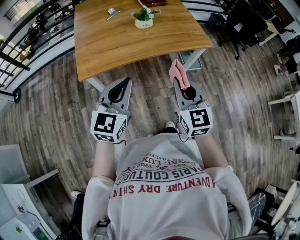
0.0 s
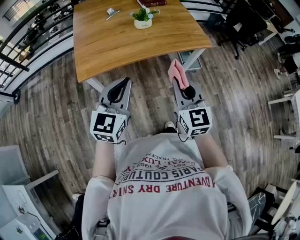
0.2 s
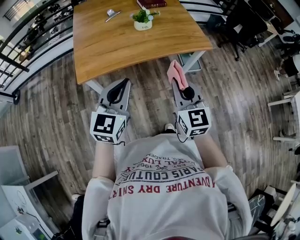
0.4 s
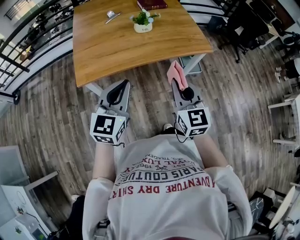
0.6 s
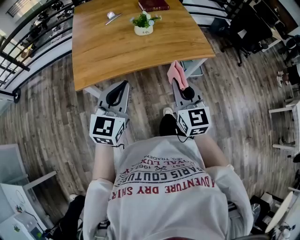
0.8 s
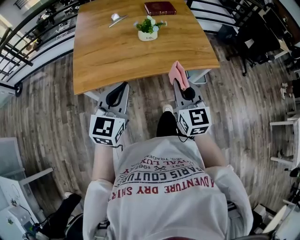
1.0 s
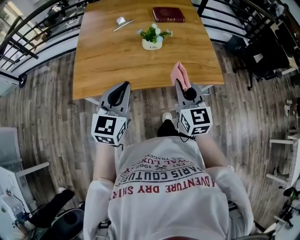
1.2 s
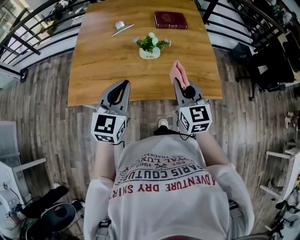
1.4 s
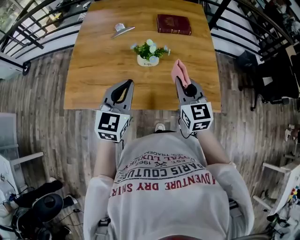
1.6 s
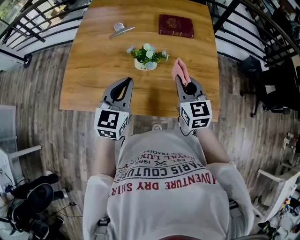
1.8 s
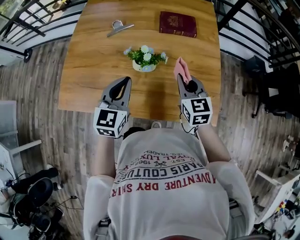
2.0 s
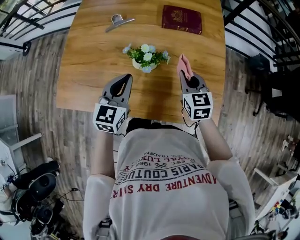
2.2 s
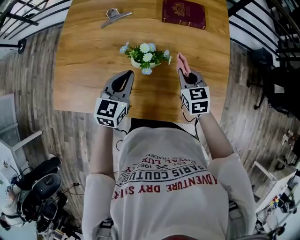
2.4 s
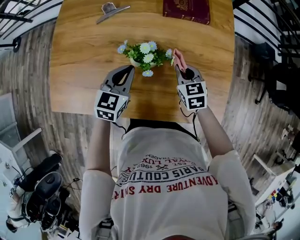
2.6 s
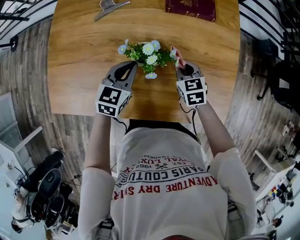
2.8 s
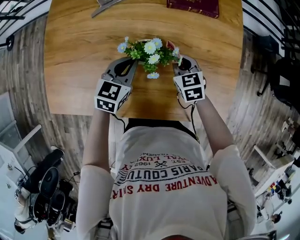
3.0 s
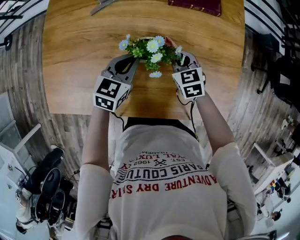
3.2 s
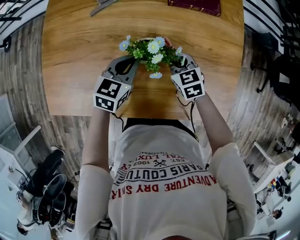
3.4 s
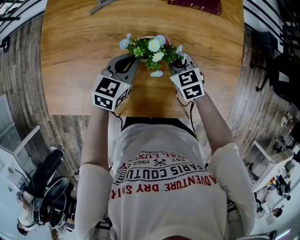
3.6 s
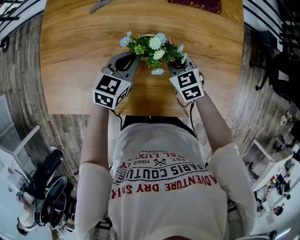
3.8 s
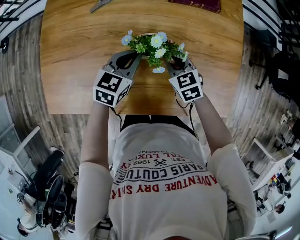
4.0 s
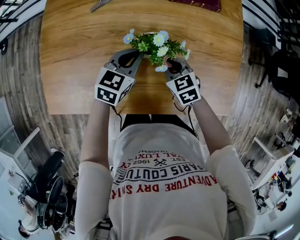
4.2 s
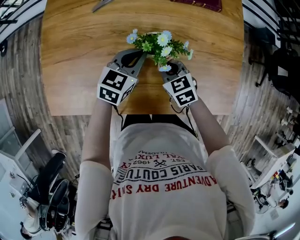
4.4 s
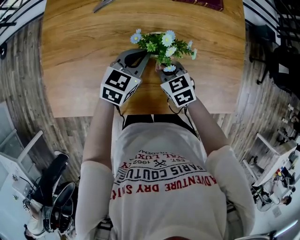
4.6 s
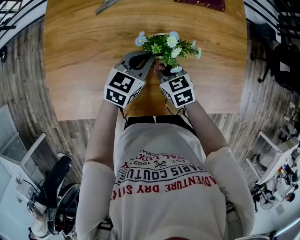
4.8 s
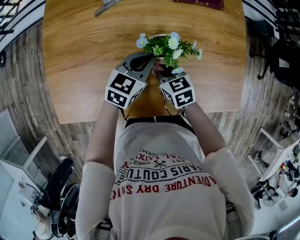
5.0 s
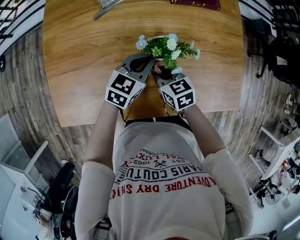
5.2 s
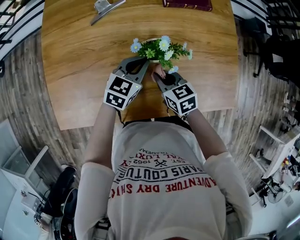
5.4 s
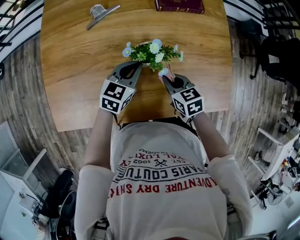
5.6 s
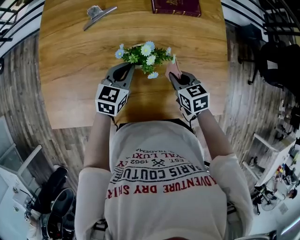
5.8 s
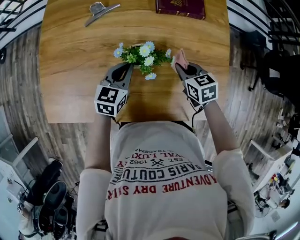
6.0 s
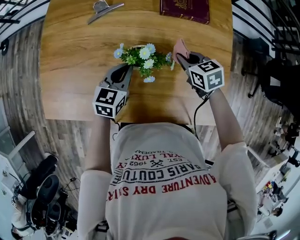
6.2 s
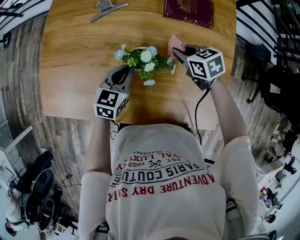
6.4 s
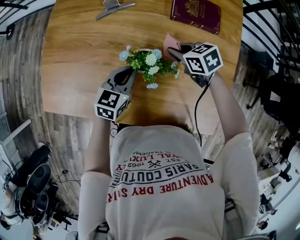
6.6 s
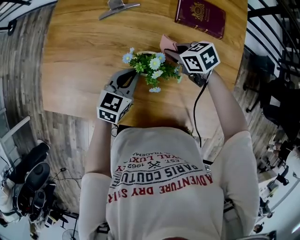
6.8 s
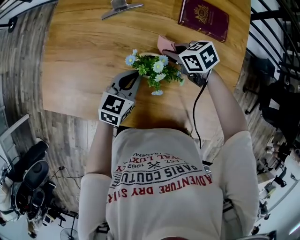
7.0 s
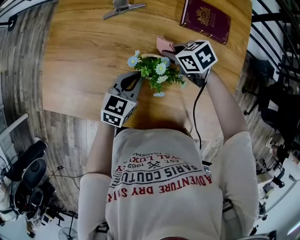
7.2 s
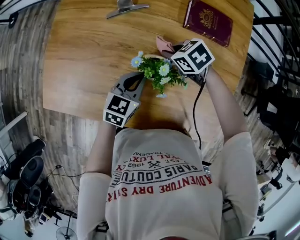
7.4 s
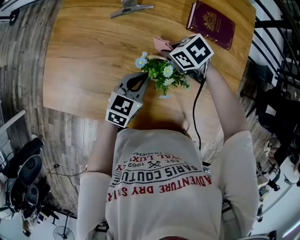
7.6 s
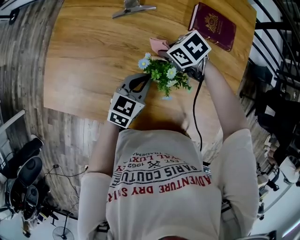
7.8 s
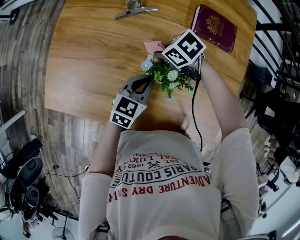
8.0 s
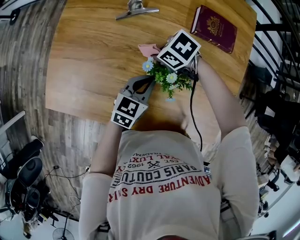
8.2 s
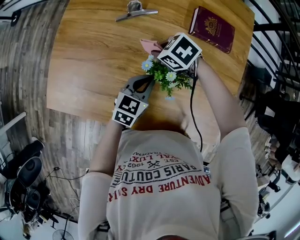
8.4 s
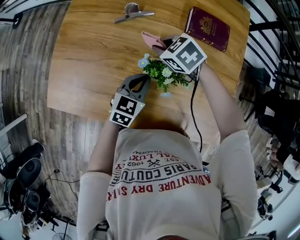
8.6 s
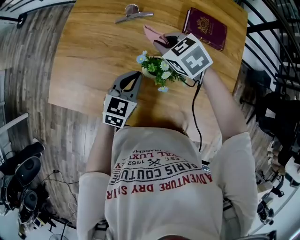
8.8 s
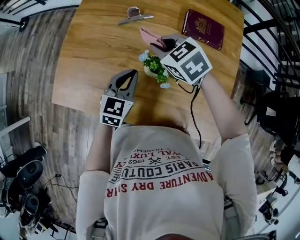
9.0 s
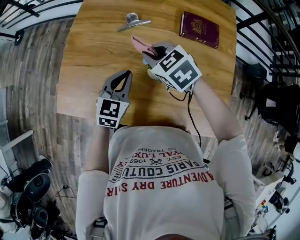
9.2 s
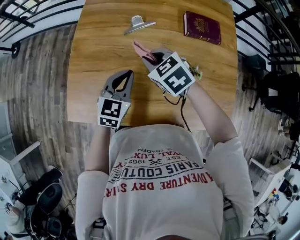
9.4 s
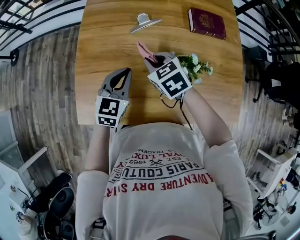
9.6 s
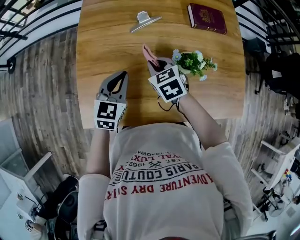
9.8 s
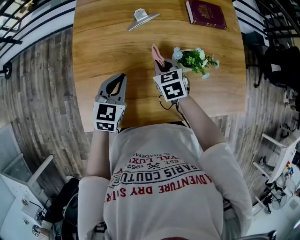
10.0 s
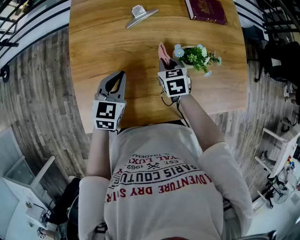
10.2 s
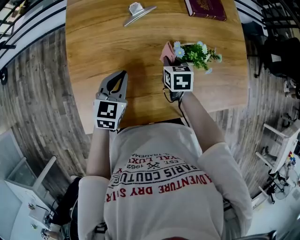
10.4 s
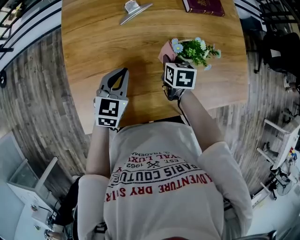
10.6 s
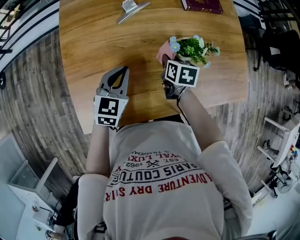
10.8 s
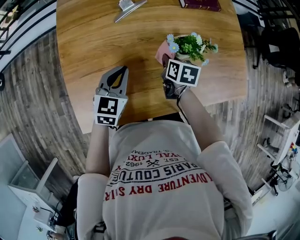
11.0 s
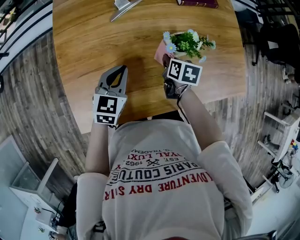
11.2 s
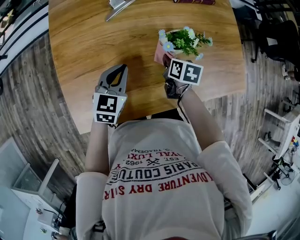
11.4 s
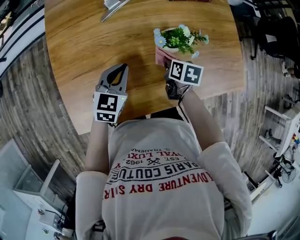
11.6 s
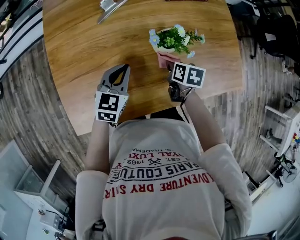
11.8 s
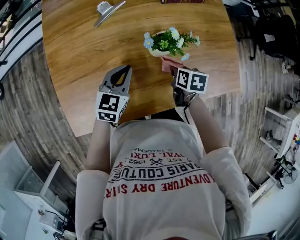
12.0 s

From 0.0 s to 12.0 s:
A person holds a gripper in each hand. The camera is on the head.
From 0.0 s to 1.6 s: The grippers both shift forward by about 35 cm. The left gripper rotates some 20 degrees. The right gripper changes its angle by approximately 20 degrees.
From 1.6 s to 3.0 s: Both grippers travel together downward and forward, approximately 30 cm. The left gripper changes its angle by about 20 degrees. Meanwhile the right gripper turns by about 30 degrees.
From 3.0 s to 4.4 s: The right gripper shifts some 10 cm to the left and backward.
From 4.4 s to 6.0 s: The right gripper is displaced to the right by some 15 cm.
From 6.0 s to 7.6 s: The right gripper shifts by approximately 20 cm, and rotates roughly 40 degrees.
From 7.6 s to 9.0 s: The right gripper is displaced upward by approximately 15 cm, and turns by some 30 degrees. The left gripper is displaced upward by some 5 cm.
From 9.0 s to 10.4 s: The left gripper ends up approximately 20 cm from where it was; the right gripper travels downward by some 15 cm, and rotates roughly 60 degrees.
From 10.4 s to 12.0 s: The grippers both shift to the right by roughly 15 cm. The right gripper swivels roughly 20 degrees.

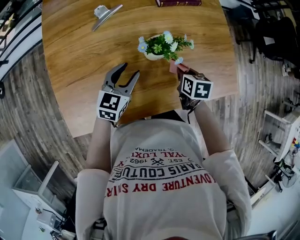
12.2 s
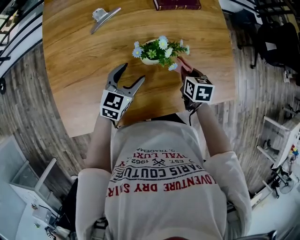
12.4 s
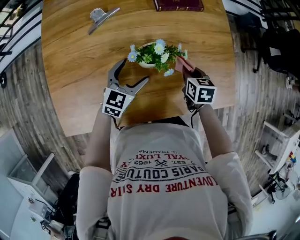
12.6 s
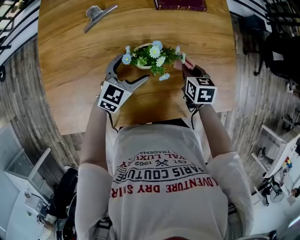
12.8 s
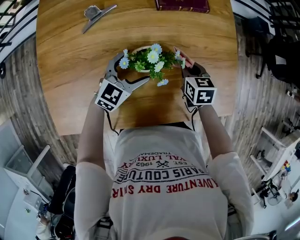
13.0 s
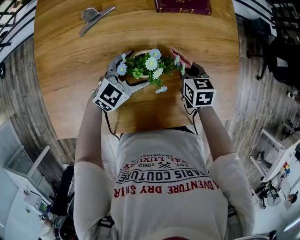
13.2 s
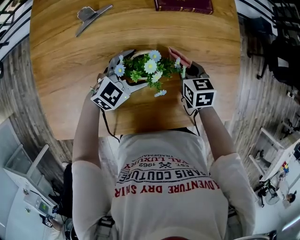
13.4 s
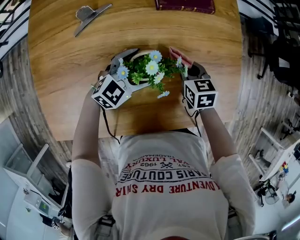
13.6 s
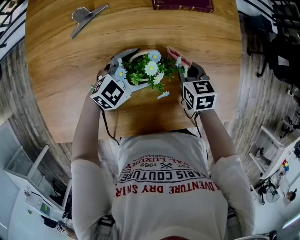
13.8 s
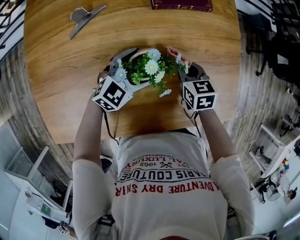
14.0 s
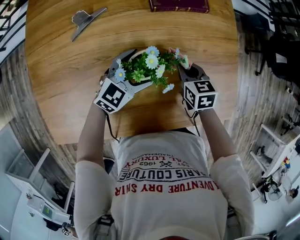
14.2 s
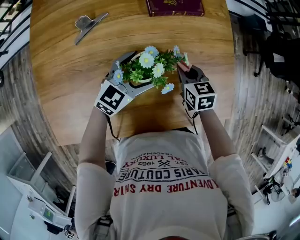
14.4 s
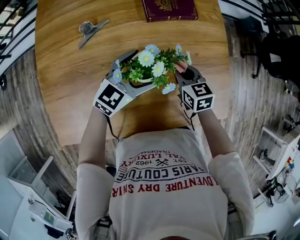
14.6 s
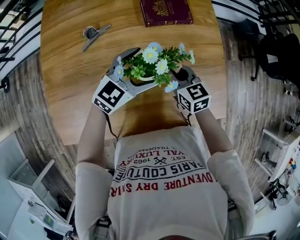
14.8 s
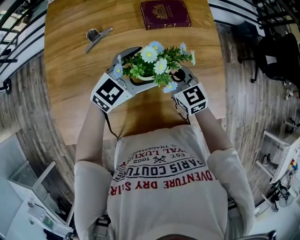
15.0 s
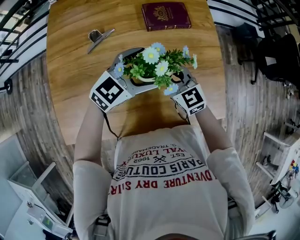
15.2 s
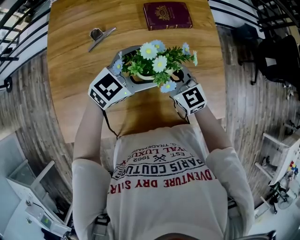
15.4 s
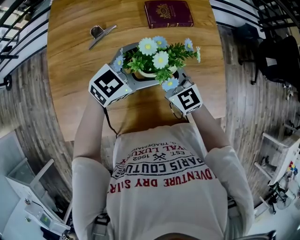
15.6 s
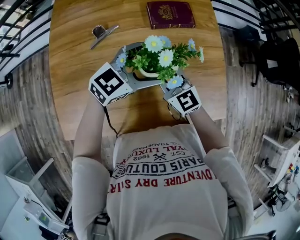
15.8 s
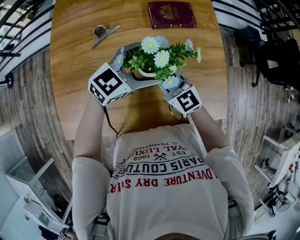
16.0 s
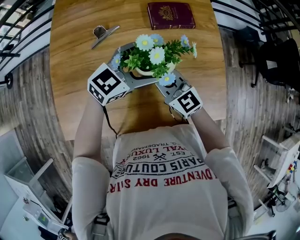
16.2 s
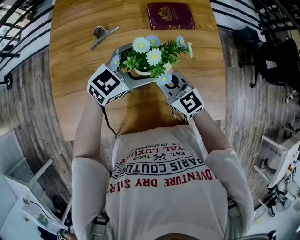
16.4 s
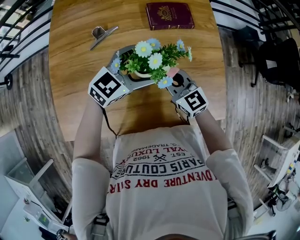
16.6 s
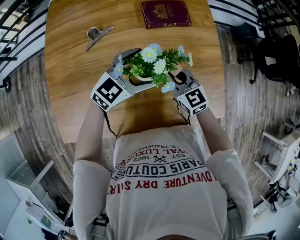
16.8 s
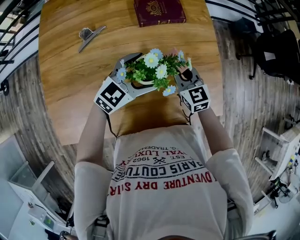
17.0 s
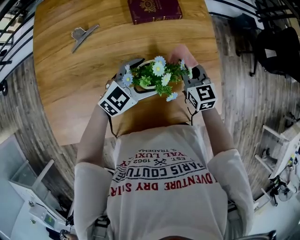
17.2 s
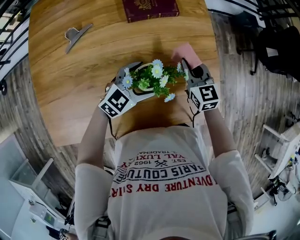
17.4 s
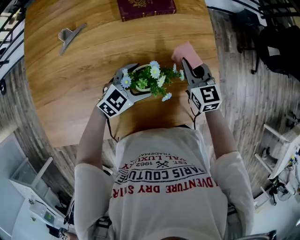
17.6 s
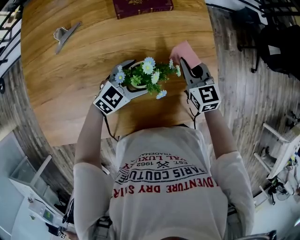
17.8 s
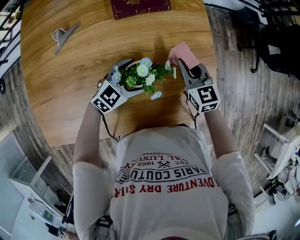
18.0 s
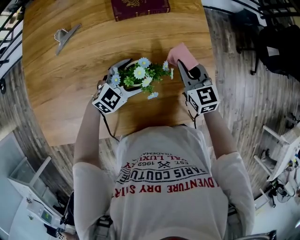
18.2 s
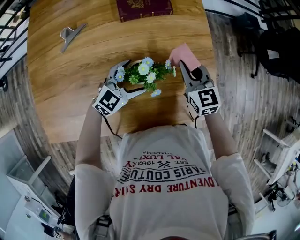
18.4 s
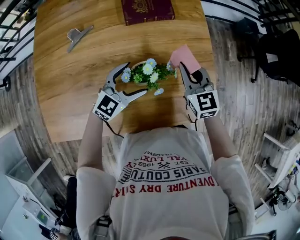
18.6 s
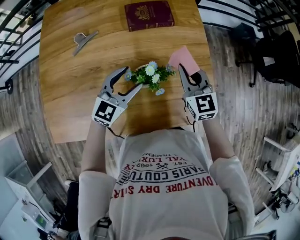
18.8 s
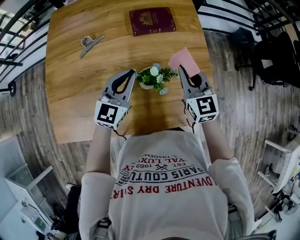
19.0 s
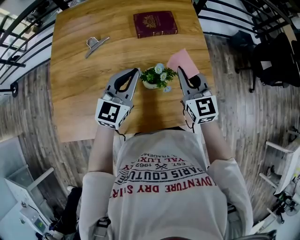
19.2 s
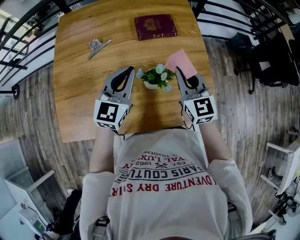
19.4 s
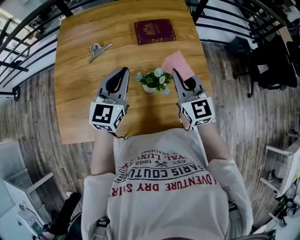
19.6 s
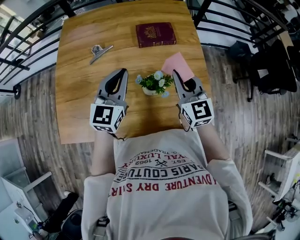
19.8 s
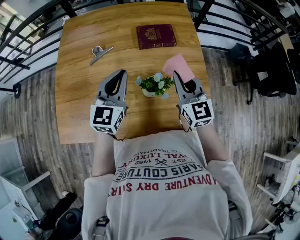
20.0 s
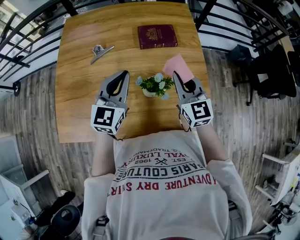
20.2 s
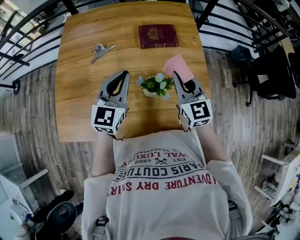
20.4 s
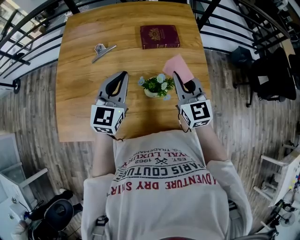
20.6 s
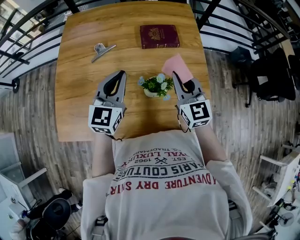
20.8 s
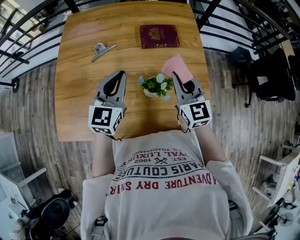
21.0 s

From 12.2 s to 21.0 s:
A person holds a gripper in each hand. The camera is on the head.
From 12.2 s to 13.6 s: The right gripper goes roughly 10 cm forward, and changes its angle by about 20 degrees. The left gripper shifts roughly 15 cm to the right, forward and downward, rotates approximately 30 degrees, and opens.
From 13.6 s to 15.2 s: The left gripper moves upward, some 20 cm. Meanwhile the right gripper is displaced upward and to the left by approximately 15 cm, and swivels about 40 degrees.
From 16.6 s to 18.0 s: The left gripper heads downward and to the right, covering some 20 cm. The right gripper goes approximately 25 cm to the right, forward and downward, and rotates about 20 degrees.
From 18.0 s to 19.6 s: The grippers both shift upward and to the left by about 25 cm. The right gripper changes its angle by approximately 20 degrees; the left gripper changes its angle by approximately 50 degrees, and closes its fingers.
From 19.6 s to 21.0 s: There are only small adjustments of the grippers.

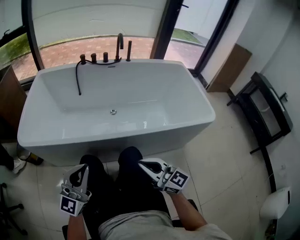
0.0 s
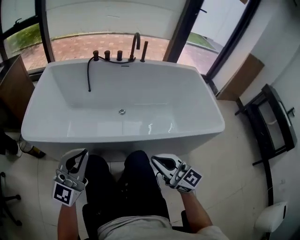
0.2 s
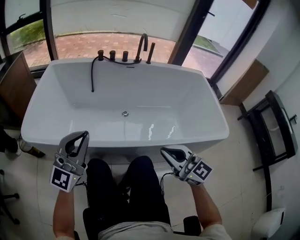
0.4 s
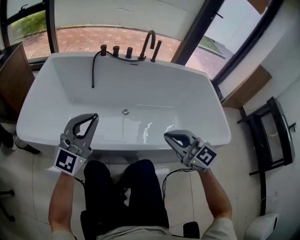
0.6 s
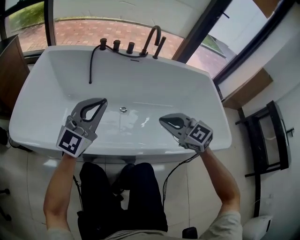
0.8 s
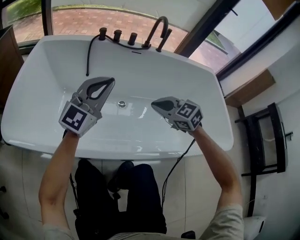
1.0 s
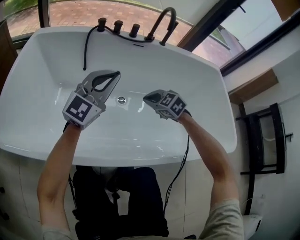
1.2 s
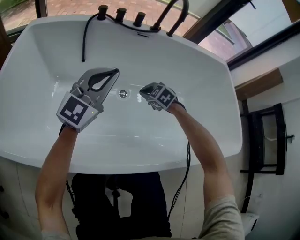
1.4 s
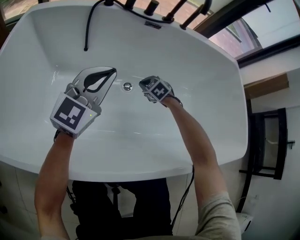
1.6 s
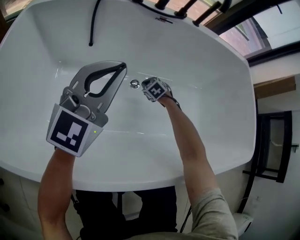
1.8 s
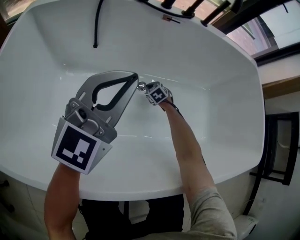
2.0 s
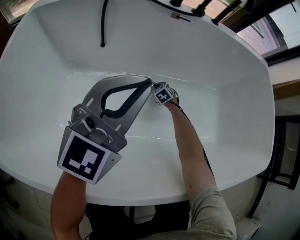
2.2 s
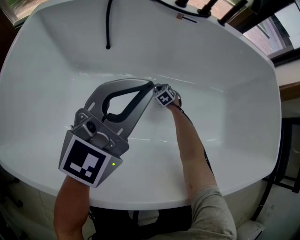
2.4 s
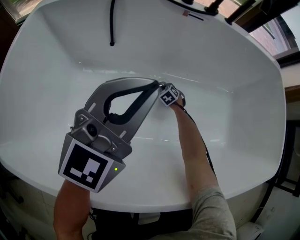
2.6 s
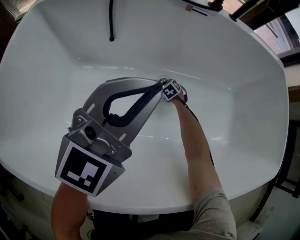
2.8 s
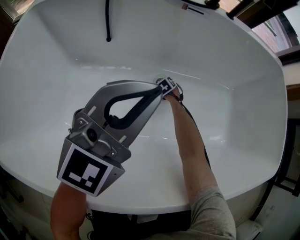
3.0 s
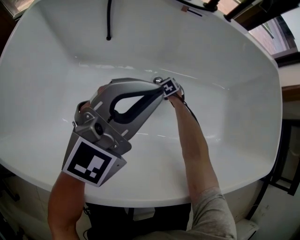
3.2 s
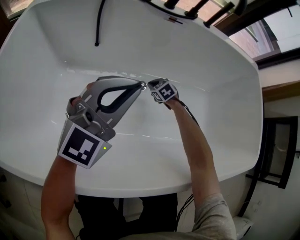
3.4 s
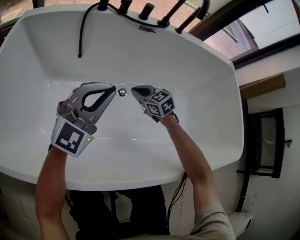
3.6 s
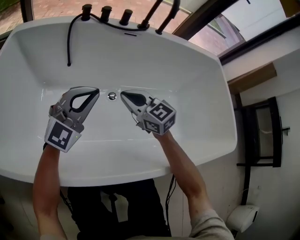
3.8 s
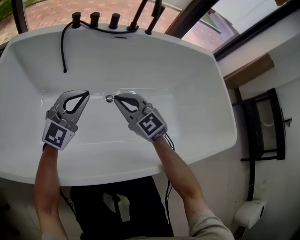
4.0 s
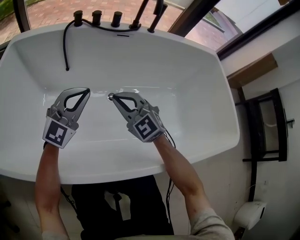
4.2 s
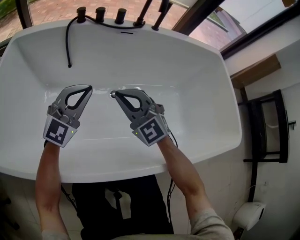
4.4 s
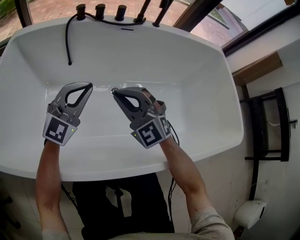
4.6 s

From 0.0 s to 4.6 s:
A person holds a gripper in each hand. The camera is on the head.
From 0.0 s to 1.6 s: Both grippers are carried forward, approximately 50 cm. The right gripper goes roughly 35 cm downward, and points its fingers about 60 degrees further downward.
From 1.6 s to 3.0 s: The right gripper heads downward, covering about 25 cm.
From 3.0 s to 4.6 s: The right gripper heads upward and backward, covering roughly 50 cm, and points its fingers roughly 60 degrees further upward.
